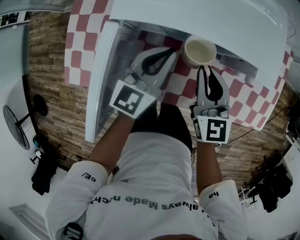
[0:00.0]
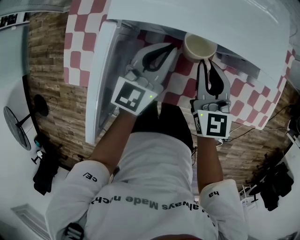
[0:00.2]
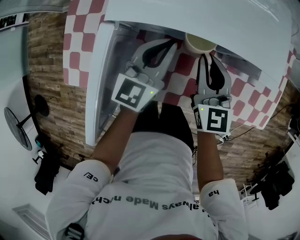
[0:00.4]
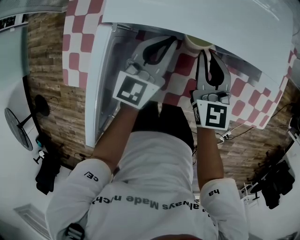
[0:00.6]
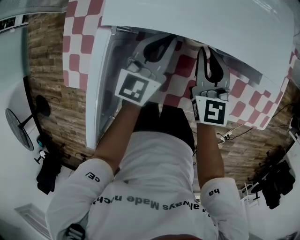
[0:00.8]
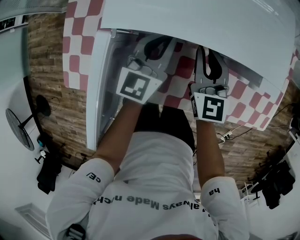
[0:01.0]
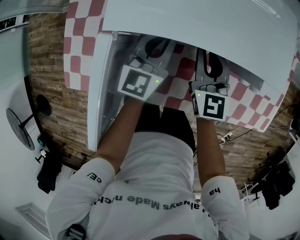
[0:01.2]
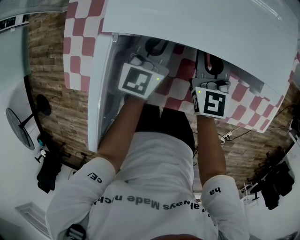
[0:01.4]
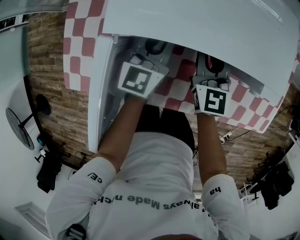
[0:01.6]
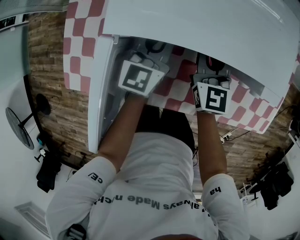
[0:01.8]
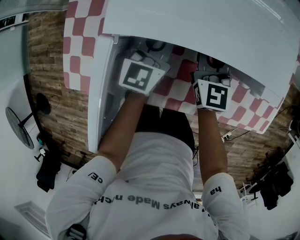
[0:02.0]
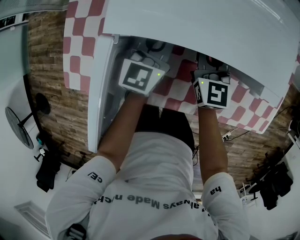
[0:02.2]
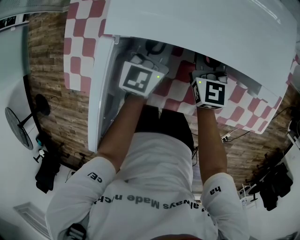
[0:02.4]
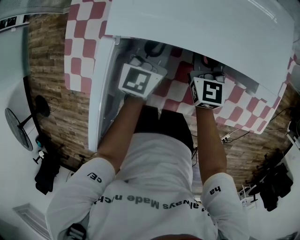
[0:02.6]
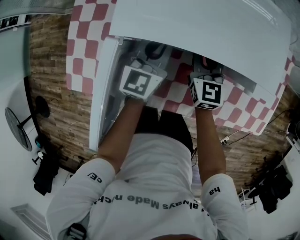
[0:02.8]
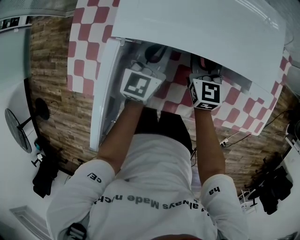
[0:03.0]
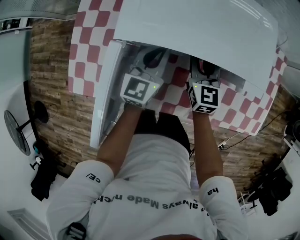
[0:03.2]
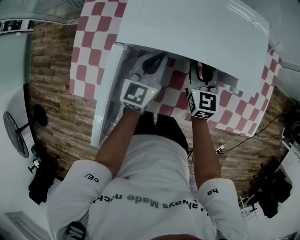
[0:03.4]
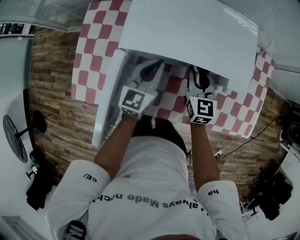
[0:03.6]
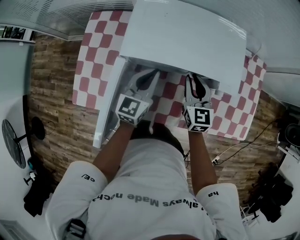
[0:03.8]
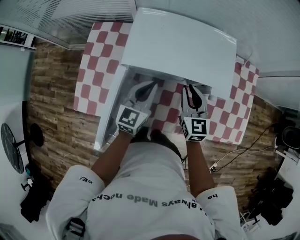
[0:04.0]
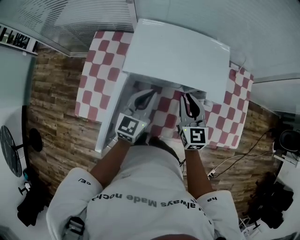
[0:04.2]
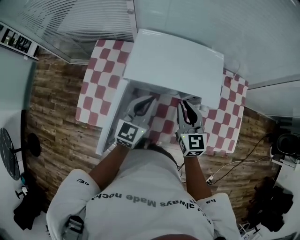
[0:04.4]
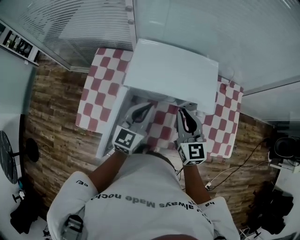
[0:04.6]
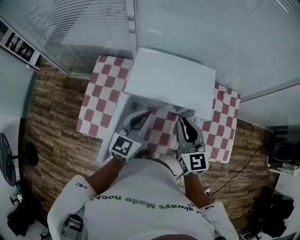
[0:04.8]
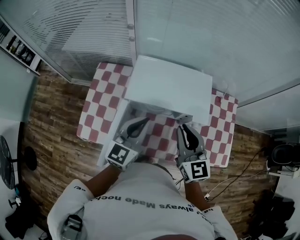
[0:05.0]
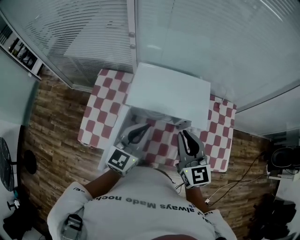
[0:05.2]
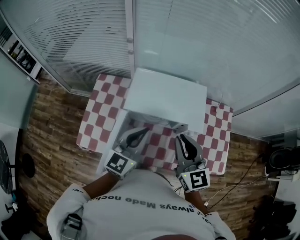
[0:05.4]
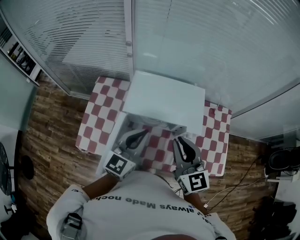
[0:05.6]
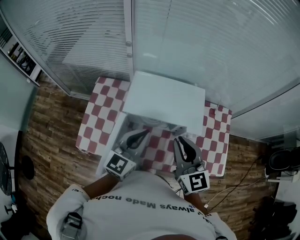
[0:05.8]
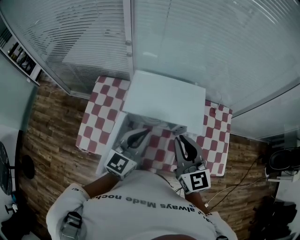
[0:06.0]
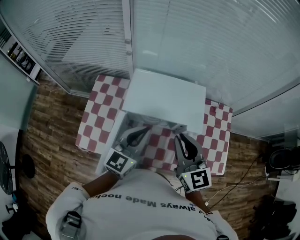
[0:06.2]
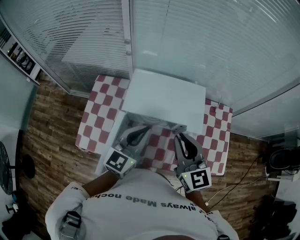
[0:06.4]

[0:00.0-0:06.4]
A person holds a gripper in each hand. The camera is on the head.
0:00.0 to 0:01.6: The grippers both shift forward by roughly 10 cm.
0:01.6 to 0:03.2: There are only small adjustments of the grippers.
0:03.2 to 0:04.8: The two grippers go some 30 cm upward and backward.
0:04.8 to 0:06.4: The two grippers go some 10 cm upward.

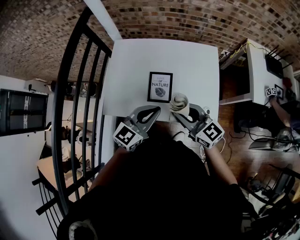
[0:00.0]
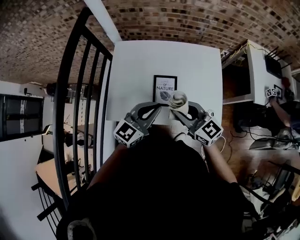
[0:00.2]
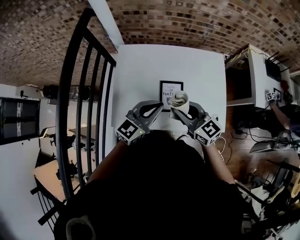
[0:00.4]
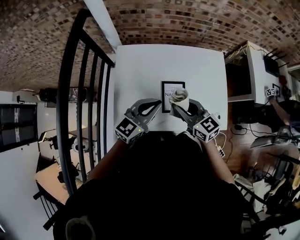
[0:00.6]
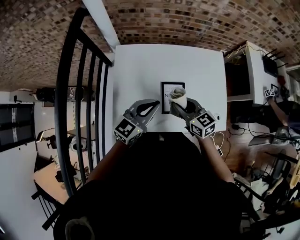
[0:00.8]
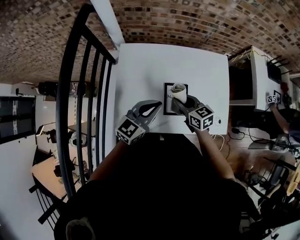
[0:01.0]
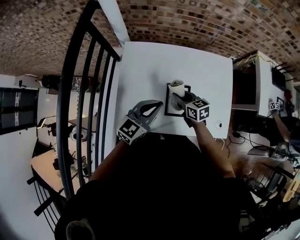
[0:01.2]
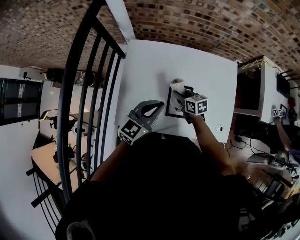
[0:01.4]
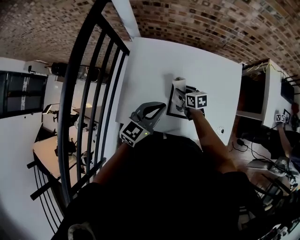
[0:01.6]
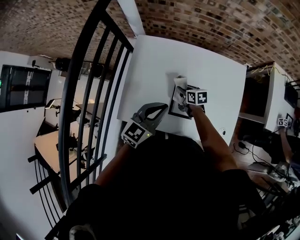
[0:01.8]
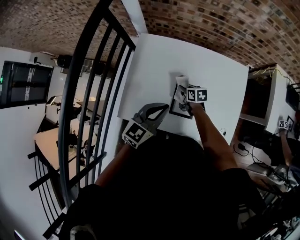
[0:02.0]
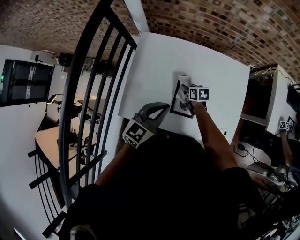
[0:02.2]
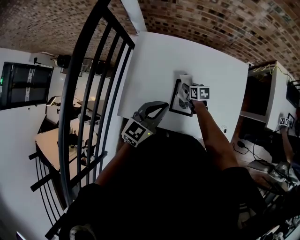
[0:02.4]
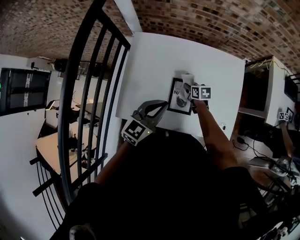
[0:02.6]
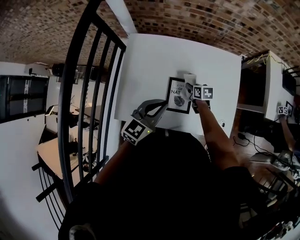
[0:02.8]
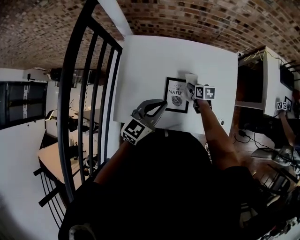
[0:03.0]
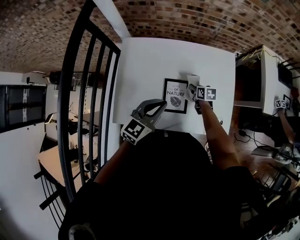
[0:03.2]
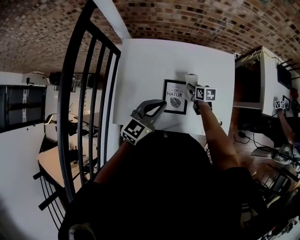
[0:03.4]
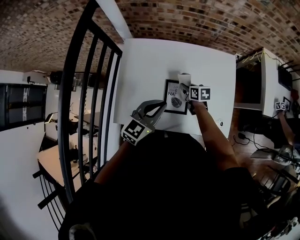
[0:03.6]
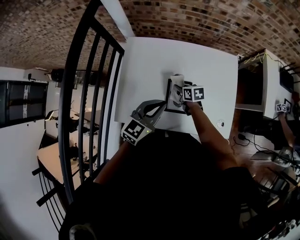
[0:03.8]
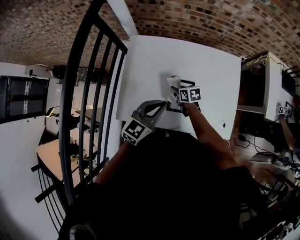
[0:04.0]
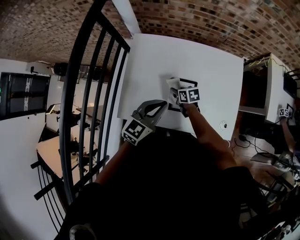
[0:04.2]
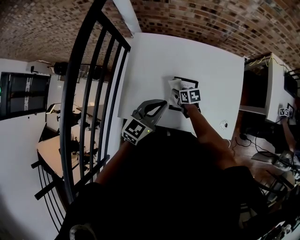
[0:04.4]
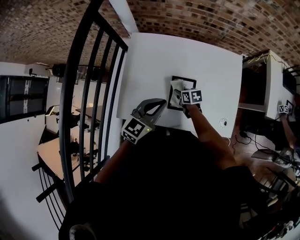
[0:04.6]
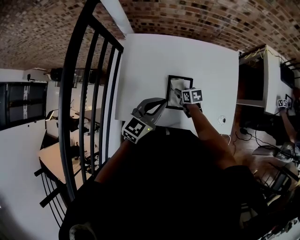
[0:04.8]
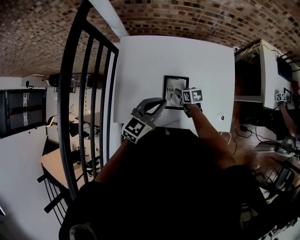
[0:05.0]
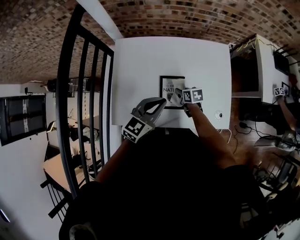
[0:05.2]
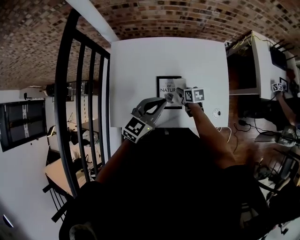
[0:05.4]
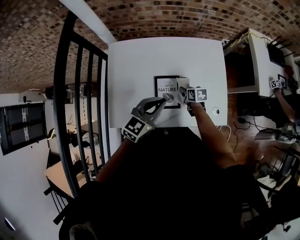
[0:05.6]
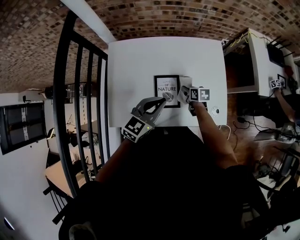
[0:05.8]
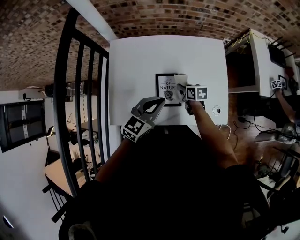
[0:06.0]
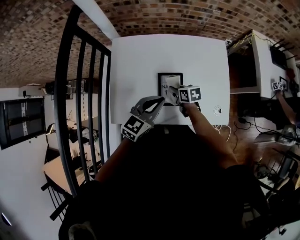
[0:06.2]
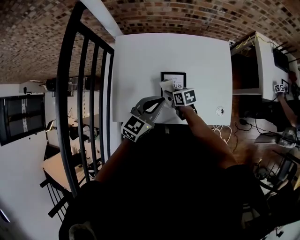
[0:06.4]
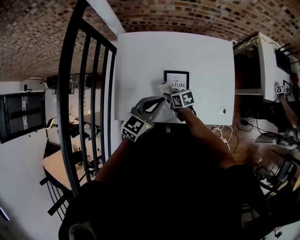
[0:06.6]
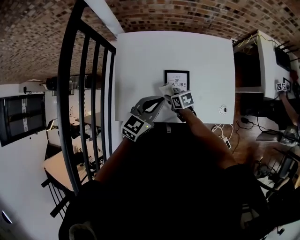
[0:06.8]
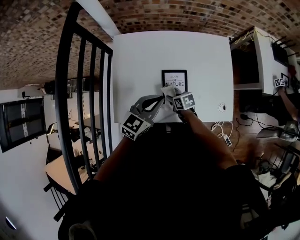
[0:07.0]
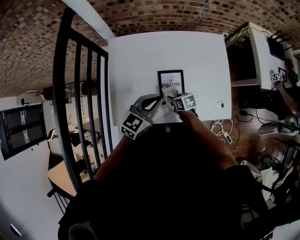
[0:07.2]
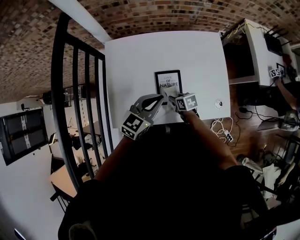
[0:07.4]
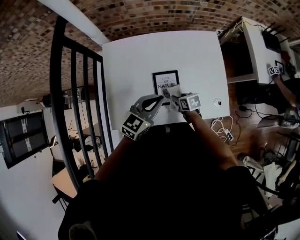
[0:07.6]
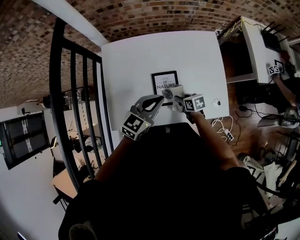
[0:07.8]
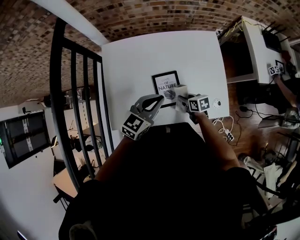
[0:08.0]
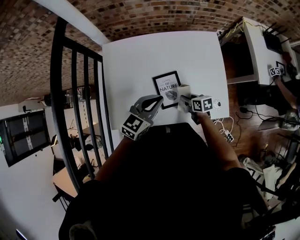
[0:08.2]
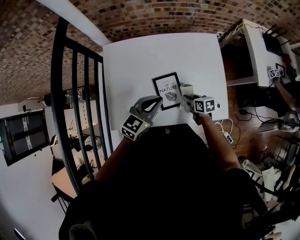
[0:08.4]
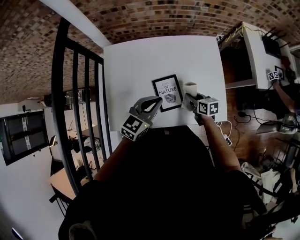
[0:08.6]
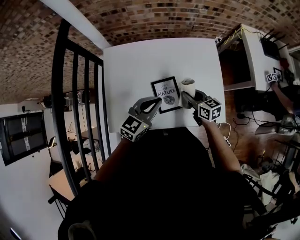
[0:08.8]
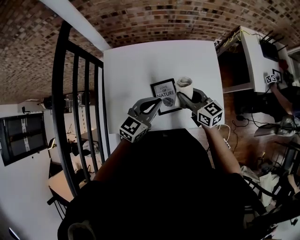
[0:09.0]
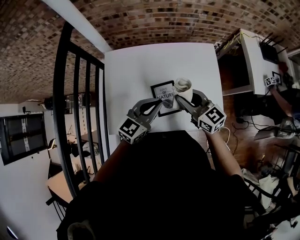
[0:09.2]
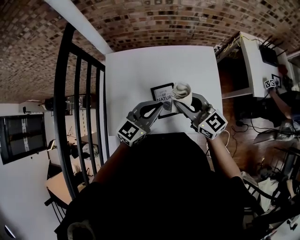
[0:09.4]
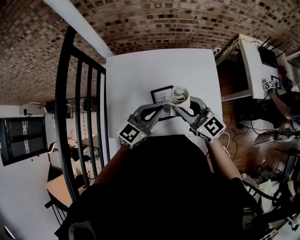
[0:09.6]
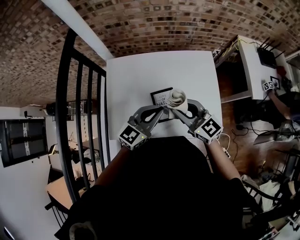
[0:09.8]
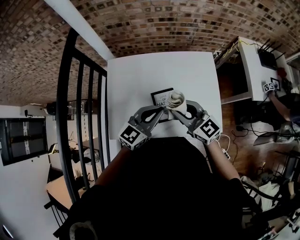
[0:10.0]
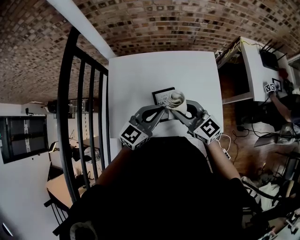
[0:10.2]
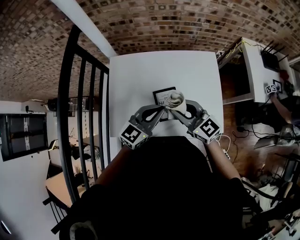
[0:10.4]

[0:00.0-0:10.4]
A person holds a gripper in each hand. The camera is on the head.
0:00.0 to 0:01.4: The right gripper is displaced downward, forward and to the left by some 35 cm, and changes its angle by about 40 degrees; the left gripper travels to the left, forward and downward by some 20 cm.
0:01.4 to 0:03.0: The right gripper shifts some 15 cm to the right and downward.
0:03.0 to 0:04.4: The right gripper travels to the left by about 15 cm.
0:04.4 to 0:06.0: The left gripper goes approximately 5 cm to the right; the right gripper goes roughly 15 cm to the right.
0:06.0 to 0:07.4: The right gripper moves backward and to the left, about 10 cm.
0:07.4 to 0:09.0: The right gripper moves upward, about 25 cm, and points its fingers some 30 degrees further upward.
0:09.0 to 0:10.4: The right gripper shifts approximately 10 cm upward, and turns by about 20 degrees.

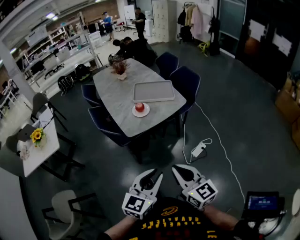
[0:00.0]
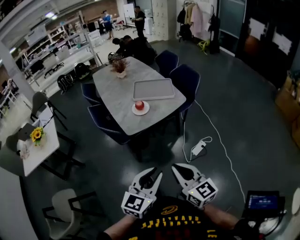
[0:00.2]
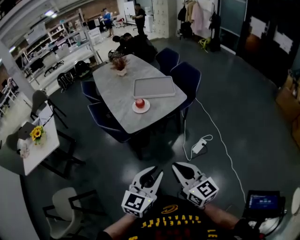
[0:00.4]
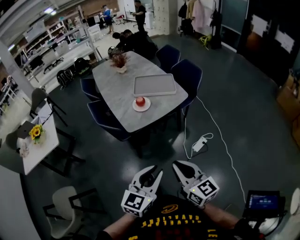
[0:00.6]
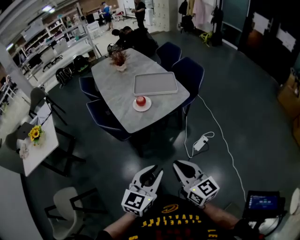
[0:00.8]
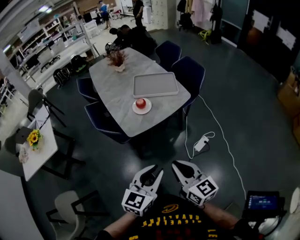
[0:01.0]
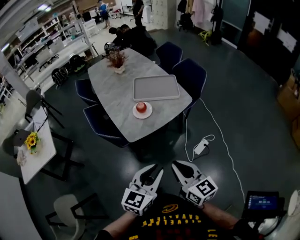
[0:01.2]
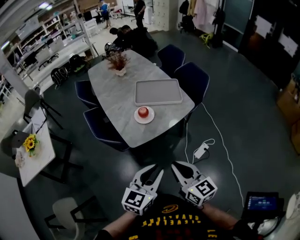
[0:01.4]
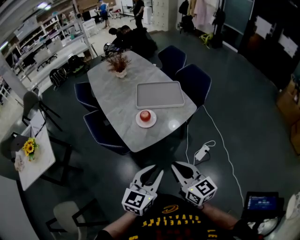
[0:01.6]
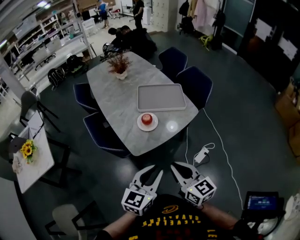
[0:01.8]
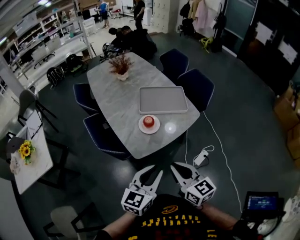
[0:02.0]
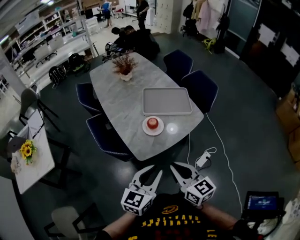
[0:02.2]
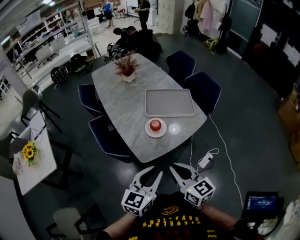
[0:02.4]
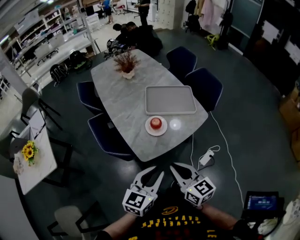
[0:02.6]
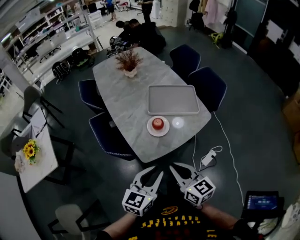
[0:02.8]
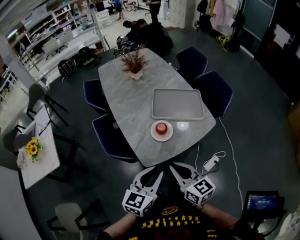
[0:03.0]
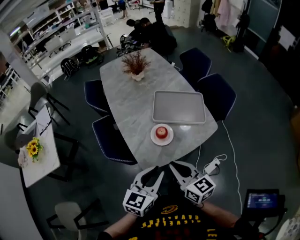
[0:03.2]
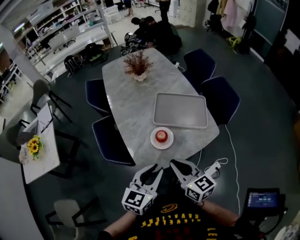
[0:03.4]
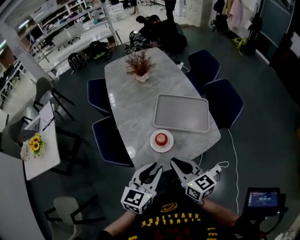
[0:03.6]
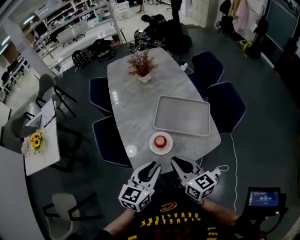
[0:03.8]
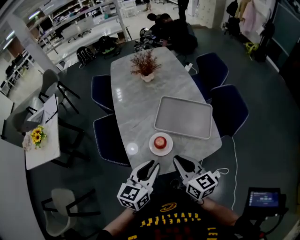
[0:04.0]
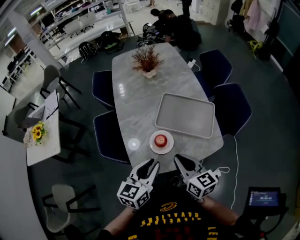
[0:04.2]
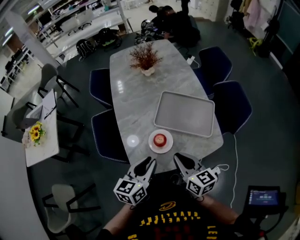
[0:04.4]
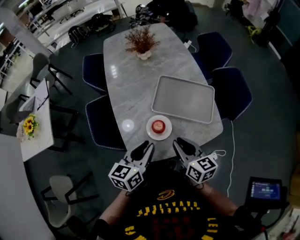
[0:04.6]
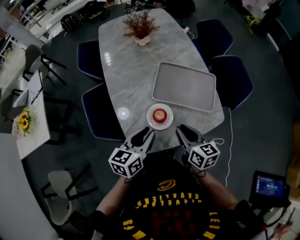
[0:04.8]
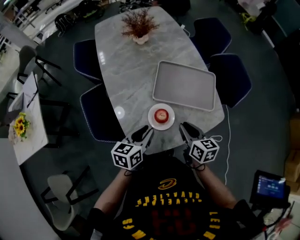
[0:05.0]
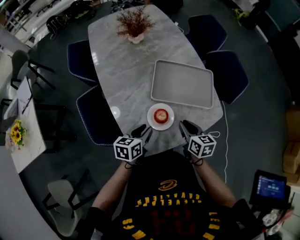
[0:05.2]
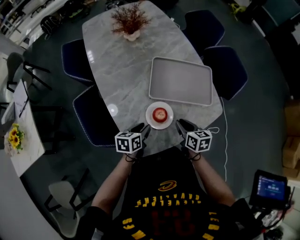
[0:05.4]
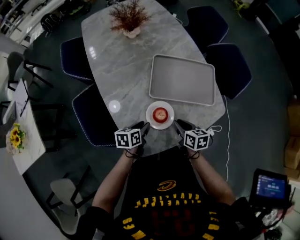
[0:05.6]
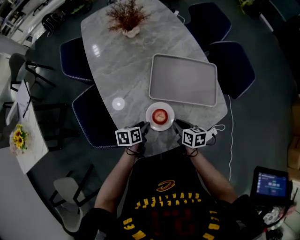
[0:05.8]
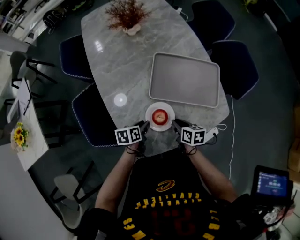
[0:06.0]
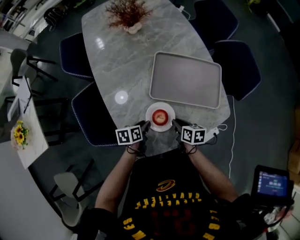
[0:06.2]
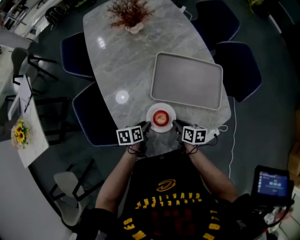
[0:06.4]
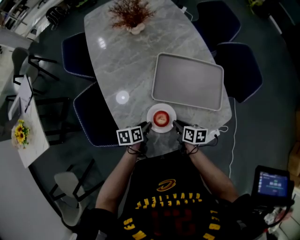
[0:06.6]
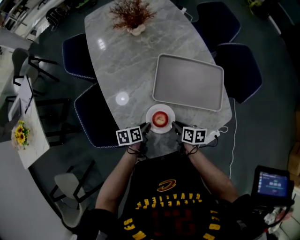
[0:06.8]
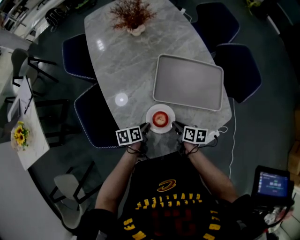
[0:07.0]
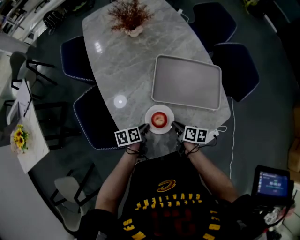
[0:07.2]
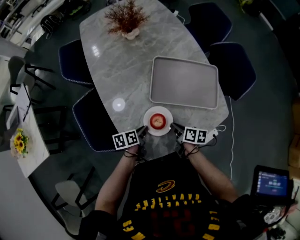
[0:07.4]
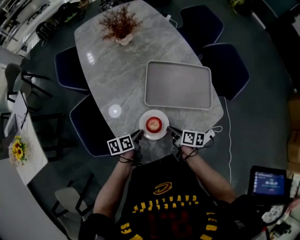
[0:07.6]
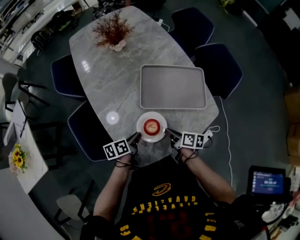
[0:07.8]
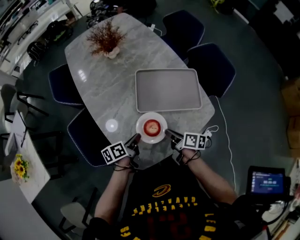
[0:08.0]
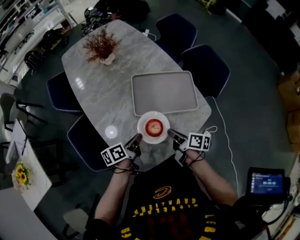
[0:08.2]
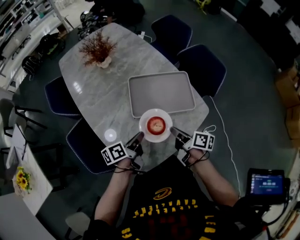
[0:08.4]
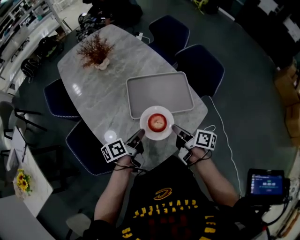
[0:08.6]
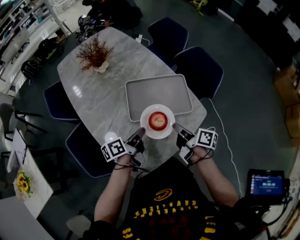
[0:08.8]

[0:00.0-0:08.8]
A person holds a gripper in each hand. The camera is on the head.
0:00.0 to 0:01.4: The two grippers go about 15 cm forward.
0:01.4 to 0:03.0: Both grippers move forward and to the left, roughly 20 cm.
0:03.0 to 0:04.4: The right gripper travels forward and to the right by approximately 20 cm. Meanwhile the left gripper moves forward, about 15 cm, and changes its angle by about 20 degrees.
0:04.4 to 0:05.8: The two grippers go about 25 cm downward. The right gripper changes its angle by roughly 30 degrees; the left gripper swivels roughly 40 degrees.
0:05.8 to 0:07.4: The right gripper rotates about 20 degrees.
0:07.4 to 0:08.8: The left gripper goes some 20 cm upward, to the right and forward, and changes its angle by roughly 30 degrees, while the right gripper travels upward and to the right by about 20 cm, and rotates roughly 30 degrees.
